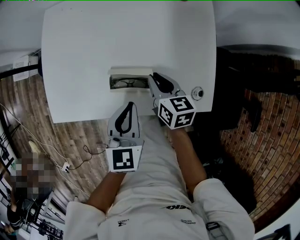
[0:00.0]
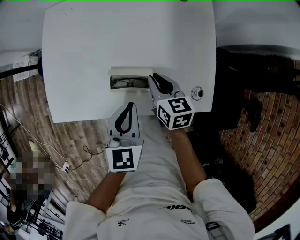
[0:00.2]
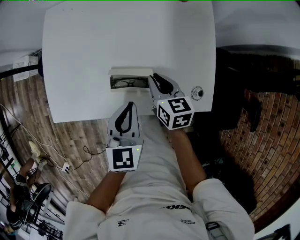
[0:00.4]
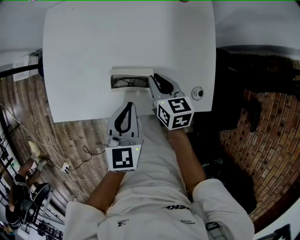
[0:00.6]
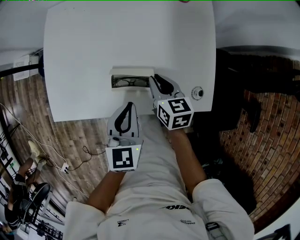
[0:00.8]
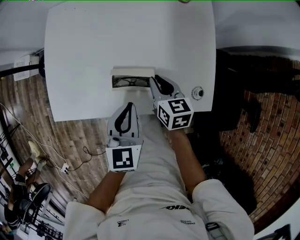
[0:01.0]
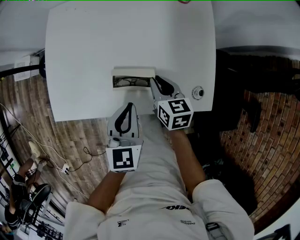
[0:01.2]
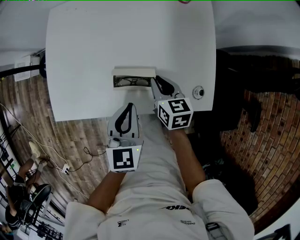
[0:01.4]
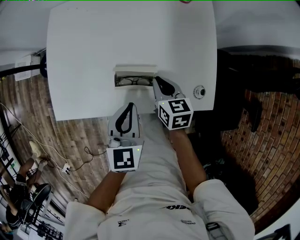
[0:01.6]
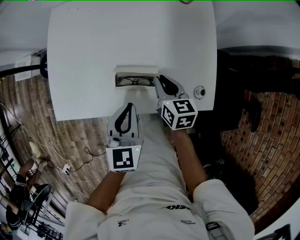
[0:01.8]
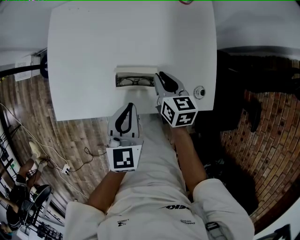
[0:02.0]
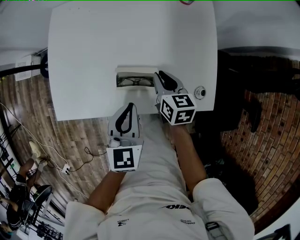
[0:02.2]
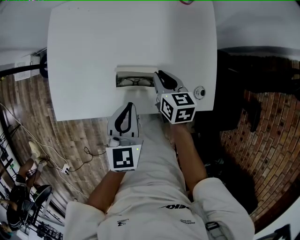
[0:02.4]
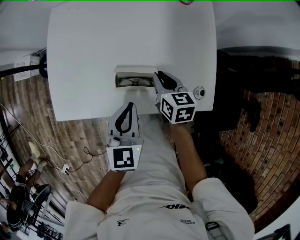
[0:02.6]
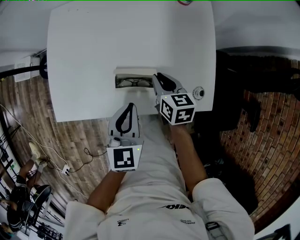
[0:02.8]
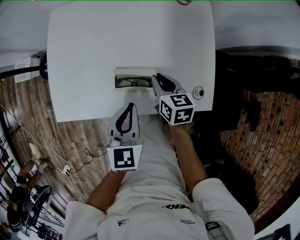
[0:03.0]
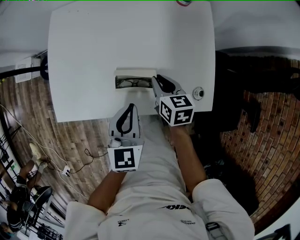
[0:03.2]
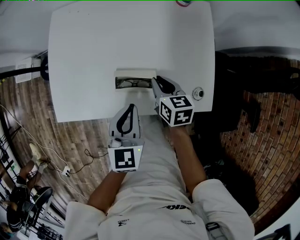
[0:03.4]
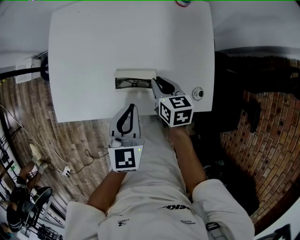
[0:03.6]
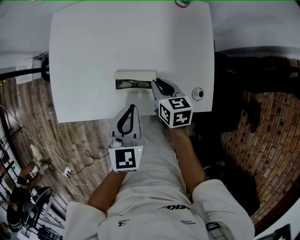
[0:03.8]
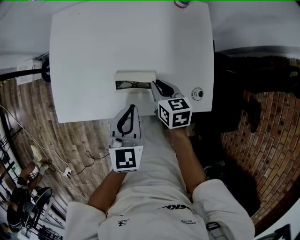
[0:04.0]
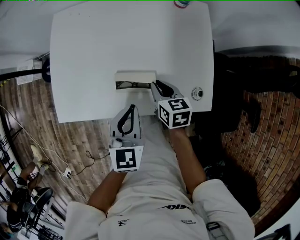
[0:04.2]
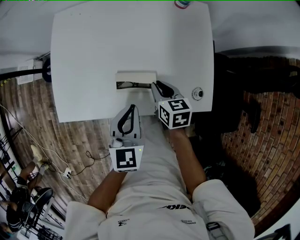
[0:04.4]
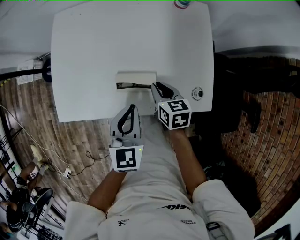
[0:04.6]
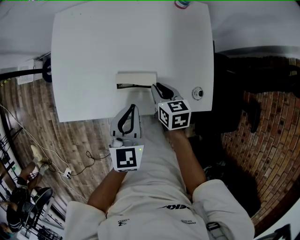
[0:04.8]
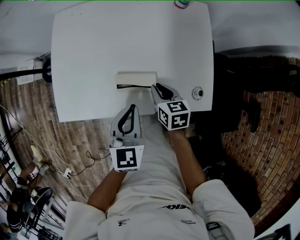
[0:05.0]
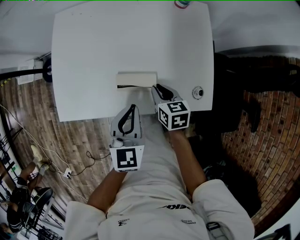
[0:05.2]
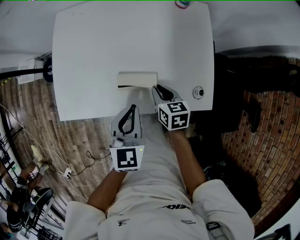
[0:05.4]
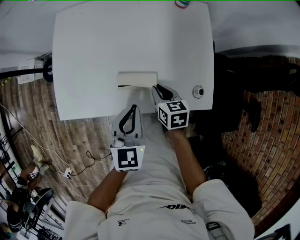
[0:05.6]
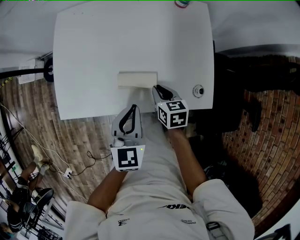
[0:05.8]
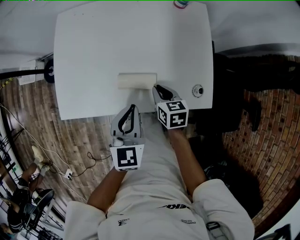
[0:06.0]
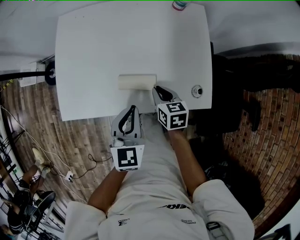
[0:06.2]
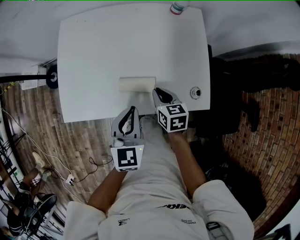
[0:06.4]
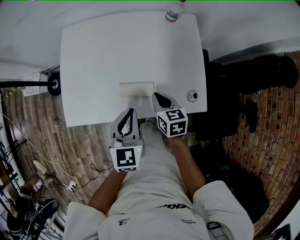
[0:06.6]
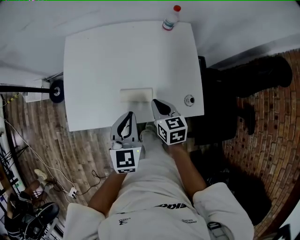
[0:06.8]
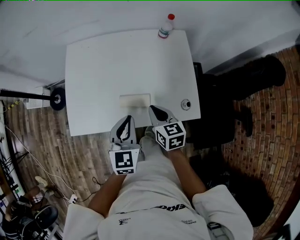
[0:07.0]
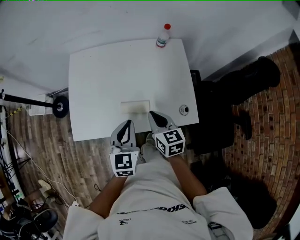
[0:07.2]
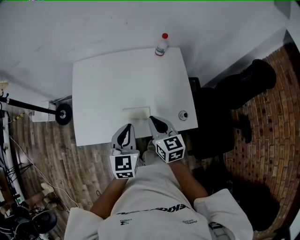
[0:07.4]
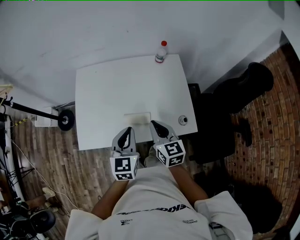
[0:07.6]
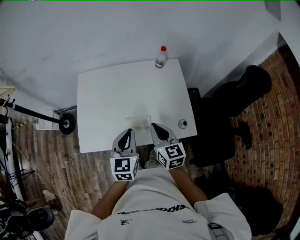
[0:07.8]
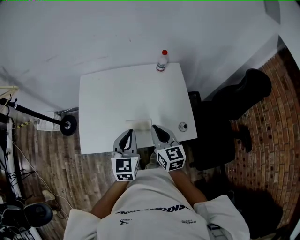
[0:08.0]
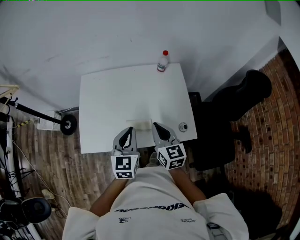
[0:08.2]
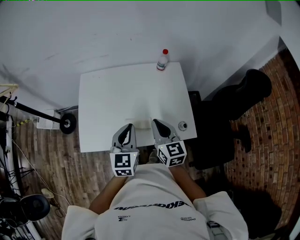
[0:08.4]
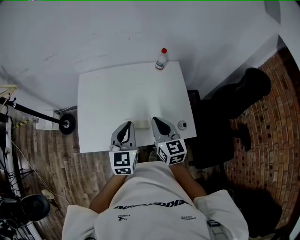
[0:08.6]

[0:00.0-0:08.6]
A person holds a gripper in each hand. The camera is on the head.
0.0 to 4.4 s: The grippers move only a little.
4.4 to 5.8 s: The grippers move only a little.
5.8 to 7.2 s: The left gripper shifts about 10 cm upward; the right gripper travels upward by roughly 20 cm, and turns by approximately 20 degrees.
7.2 to 8.6 s: The grippers both shift upward by approximately 10 cm.

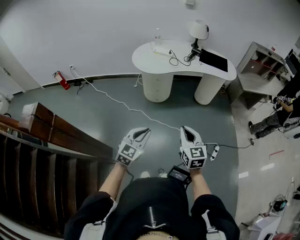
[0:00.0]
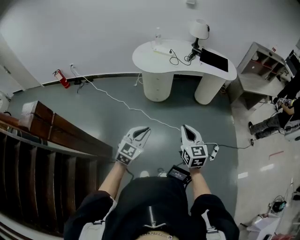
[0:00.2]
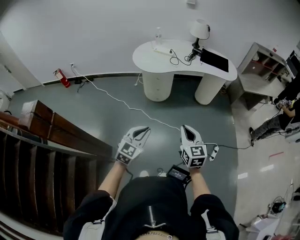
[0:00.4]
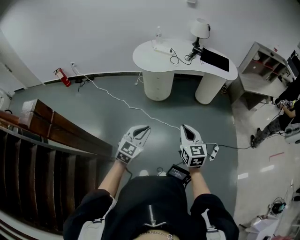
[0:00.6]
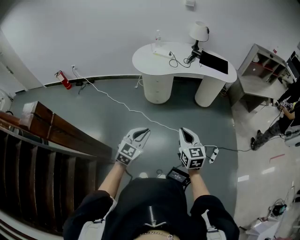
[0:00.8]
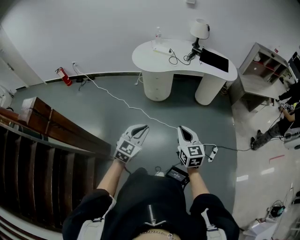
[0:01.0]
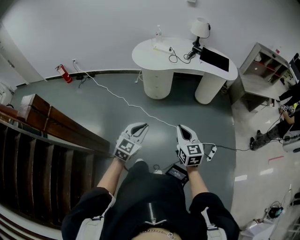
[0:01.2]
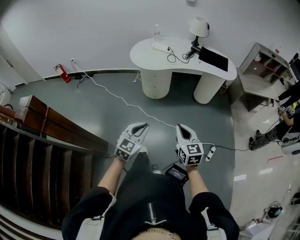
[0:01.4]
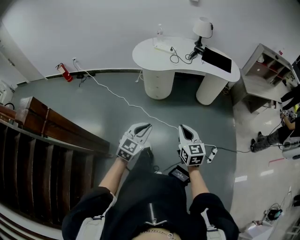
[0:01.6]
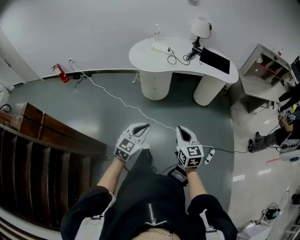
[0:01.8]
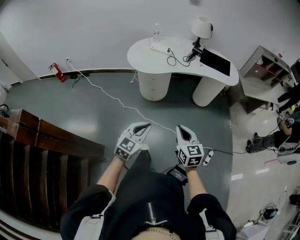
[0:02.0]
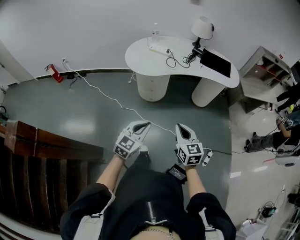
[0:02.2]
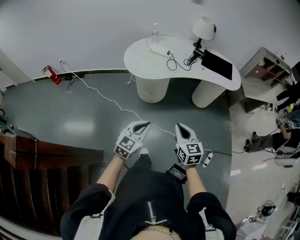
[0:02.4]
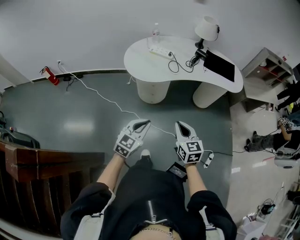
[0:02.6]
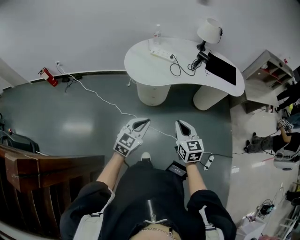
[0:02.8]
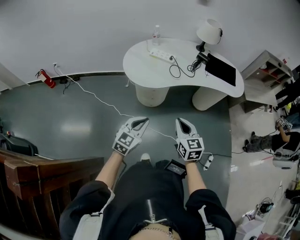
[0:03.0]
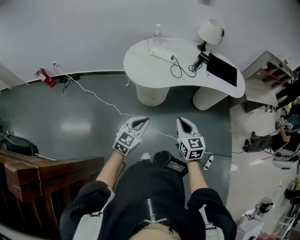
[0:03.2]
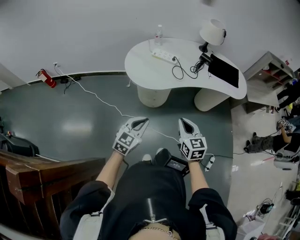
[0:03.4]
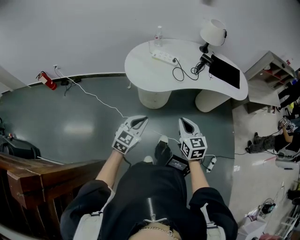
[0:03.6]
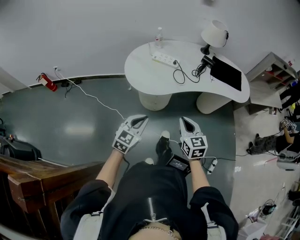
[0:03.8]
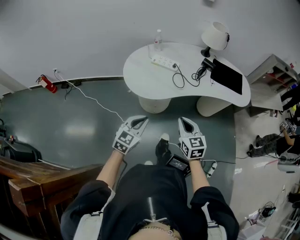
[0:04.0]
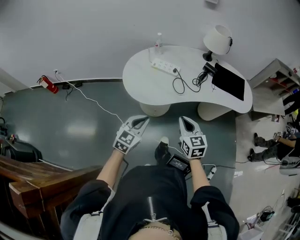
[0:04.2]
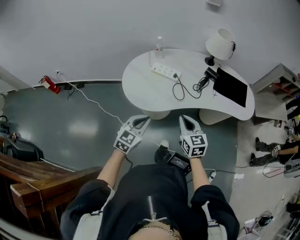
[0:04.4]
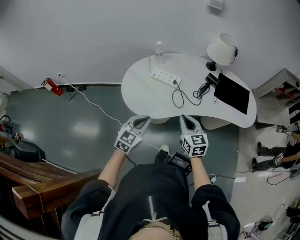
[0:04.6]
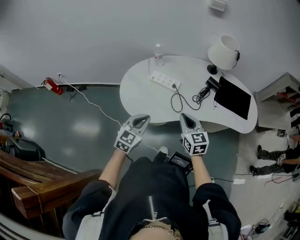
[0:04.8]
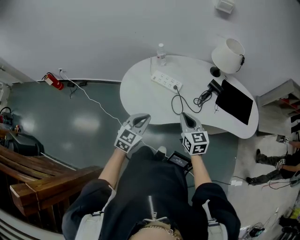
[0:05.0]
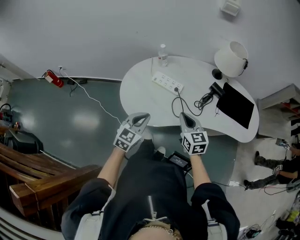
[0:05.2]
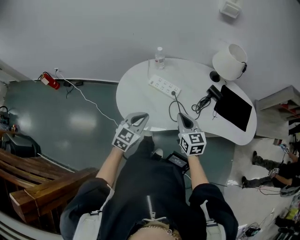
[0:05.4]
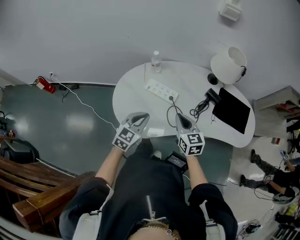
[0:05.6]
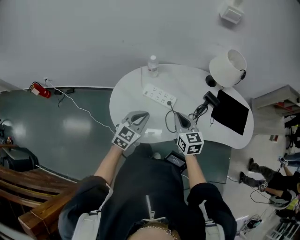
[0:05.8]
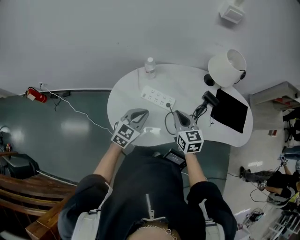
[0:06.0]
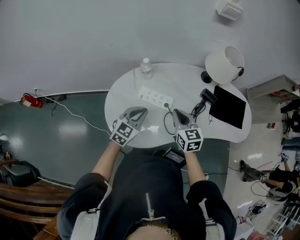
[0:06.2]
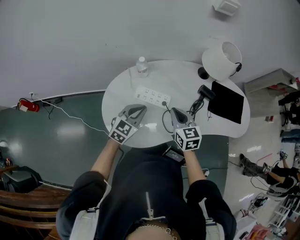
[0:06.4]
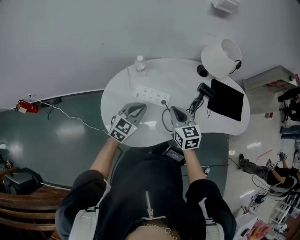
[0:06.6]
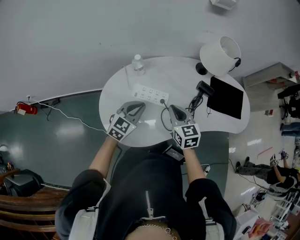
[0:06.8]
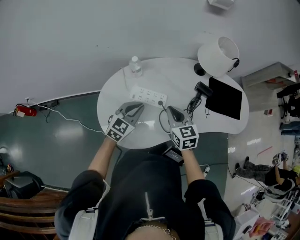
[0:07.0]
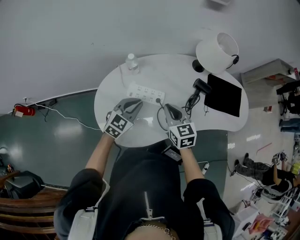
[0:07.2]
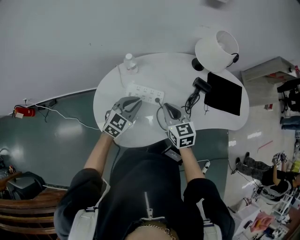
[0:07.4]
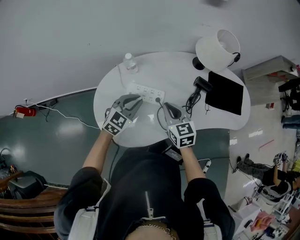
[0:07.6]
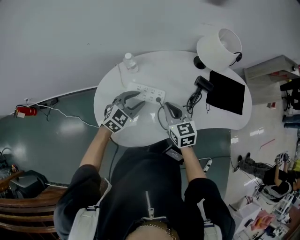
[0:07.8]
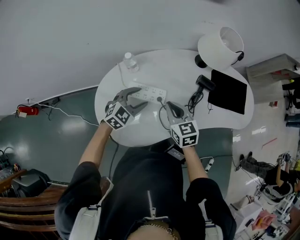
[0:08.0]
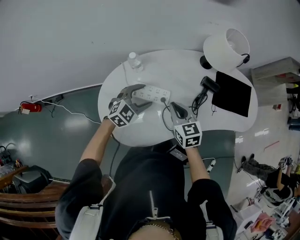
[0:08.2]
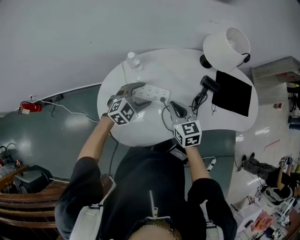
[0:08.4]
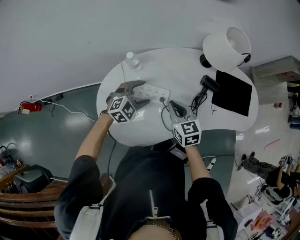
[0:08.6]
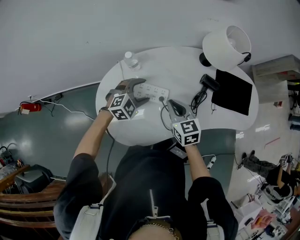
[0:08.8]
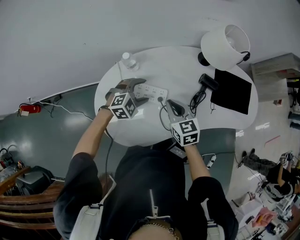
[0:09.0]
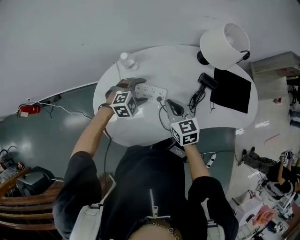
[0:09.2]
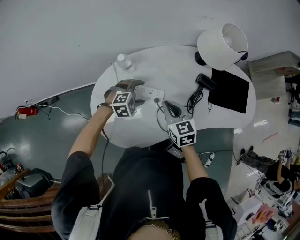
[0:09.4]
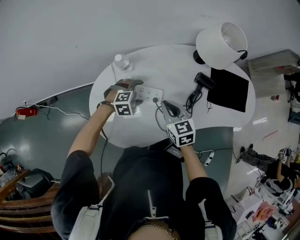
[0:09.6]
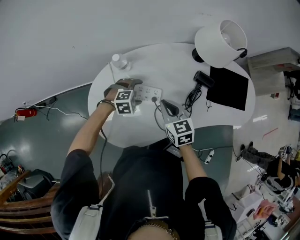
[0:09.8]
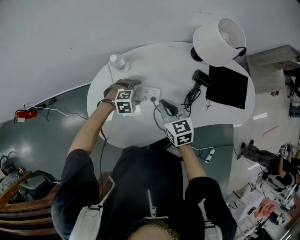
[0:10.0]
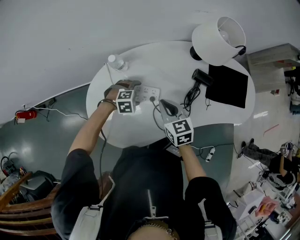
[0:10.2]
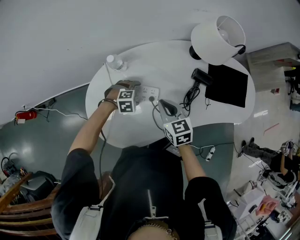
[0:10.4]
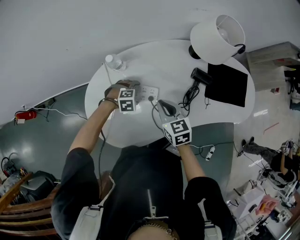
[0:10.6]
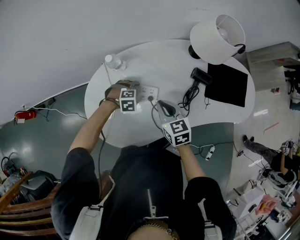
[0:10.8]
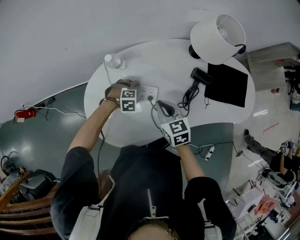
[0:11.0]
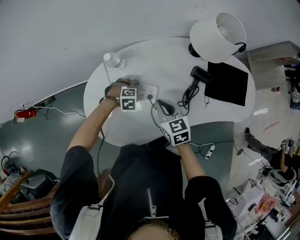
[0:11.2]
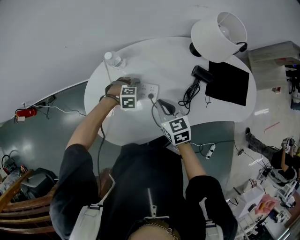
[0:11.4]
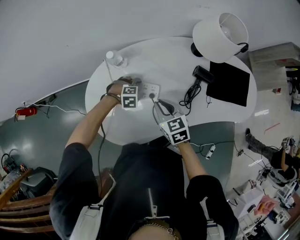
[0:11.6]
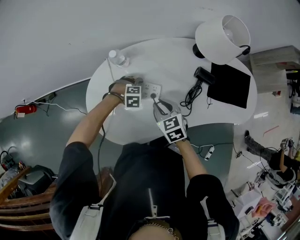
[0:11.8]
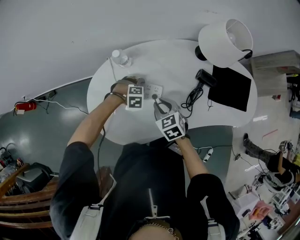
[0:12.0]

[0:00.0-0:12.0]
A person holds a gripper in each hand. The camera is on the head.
0.0 to 1.6 s: The left gripper shifts approximately 5 cm to the right, while the right gripper shifts by roughly 5 cm.
1.6 to 3.0 s: The left gripper shifts approximately 30 cm forward. The right gripper shifts roughly 30 cm forward and to the left.
3.0 to 4.4 s: Both grippers travel together forward, roughly 20 cm.
4.4 to 6.0 s: Both grippers move forward, some 30 cm.
6.0 to 7.6 s: The left gripper moves forward, about 10 cm.
7.6 to 9.0 s: The left gripper heads downward and forward, covering approximately 10 cm, swivels some 30 degrees, and opens its fingers.
9.0 to 10.4 s: The left gripper moves downward, some 10 cm, and turns by approximately 30 degrees.
10.4 to 12.0 s: The right gripper changes place by approximately 5 cm, and rotates about 20 degrees.

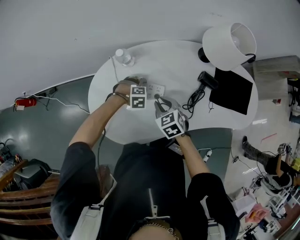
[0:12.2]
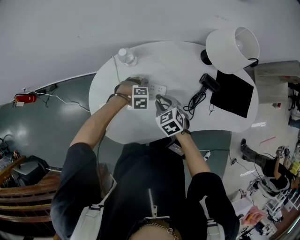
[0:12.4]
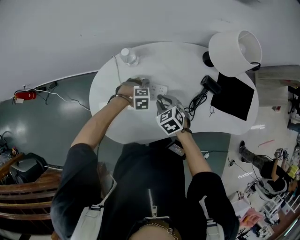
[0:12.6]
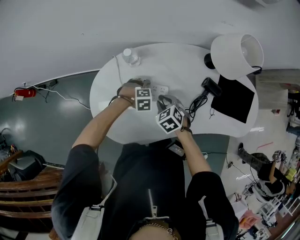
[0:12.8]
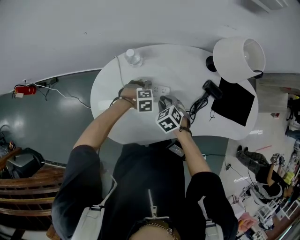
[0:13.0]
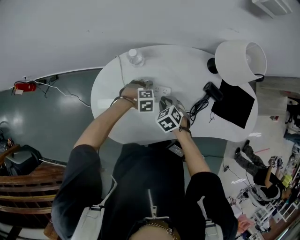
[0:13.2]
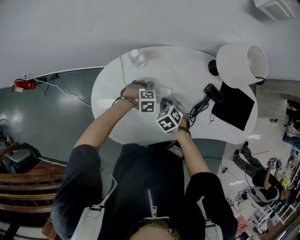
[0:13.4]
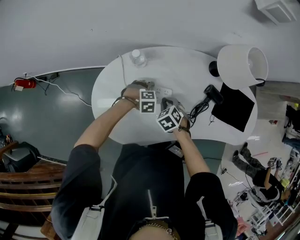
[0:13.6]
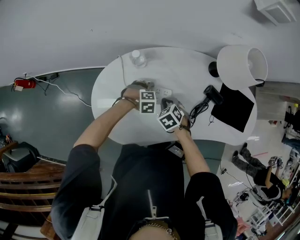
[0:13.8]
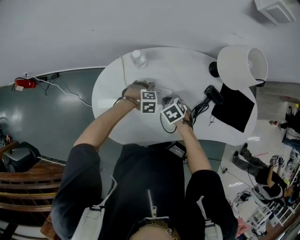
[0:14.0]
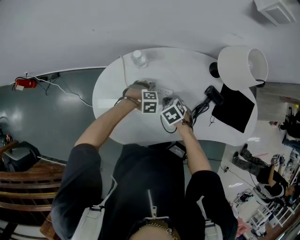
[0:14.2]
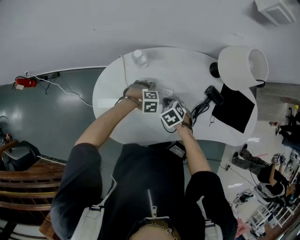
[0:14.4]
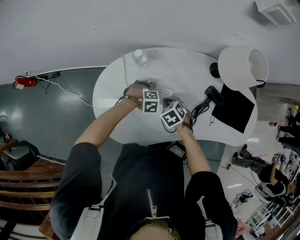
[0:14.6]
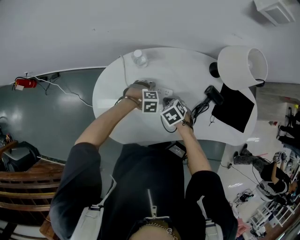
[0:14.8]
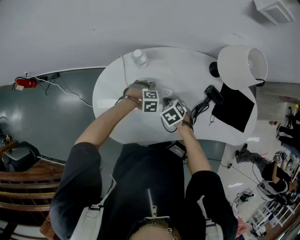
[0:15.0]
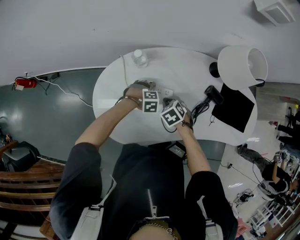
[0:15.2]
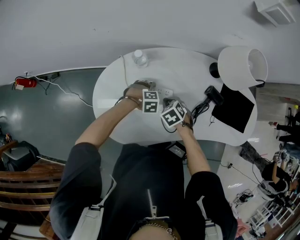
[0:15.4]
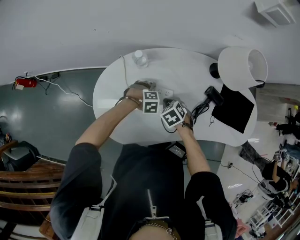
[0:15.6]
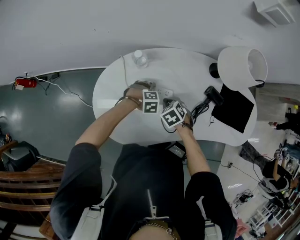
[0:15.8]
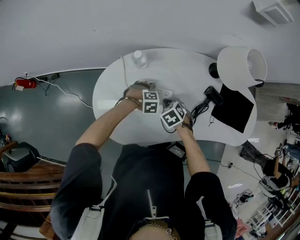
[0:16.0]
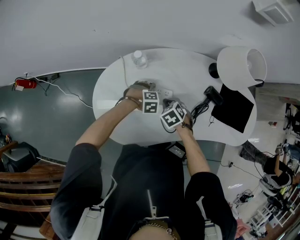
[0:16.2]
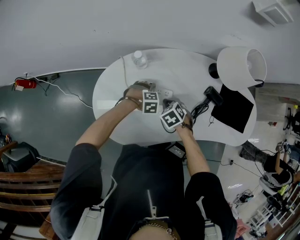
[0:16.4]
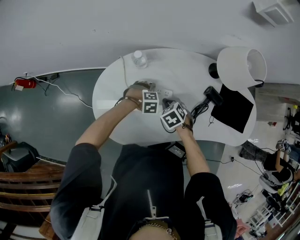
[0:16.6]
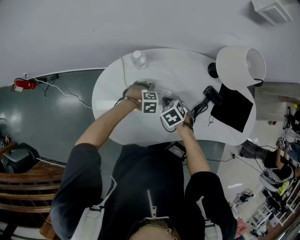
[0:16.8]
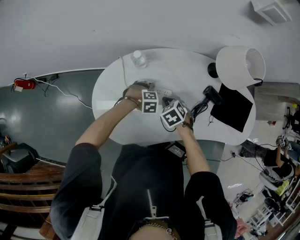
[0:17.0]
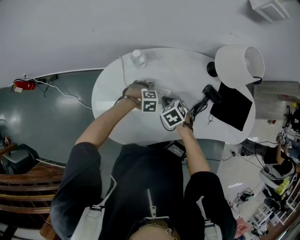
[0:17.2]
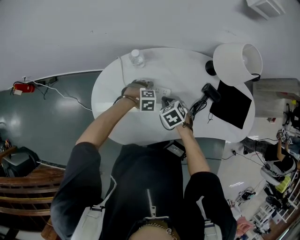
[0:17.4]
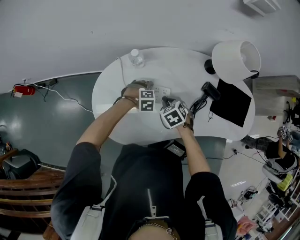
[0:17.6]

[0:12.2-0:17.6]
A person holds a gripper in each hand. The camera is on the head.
12.2 to 13.6 s: The right gripper is displaced downward by about 5 cm, and swivels roughly 20 degrees.
13.6 to 15.0 s: The grippers stay close to where they were, moving slightly.
15.0 to 16.2 s: Both grippers stay about where they are.
16.2 to 17.6 s: The grippers move only a little.
